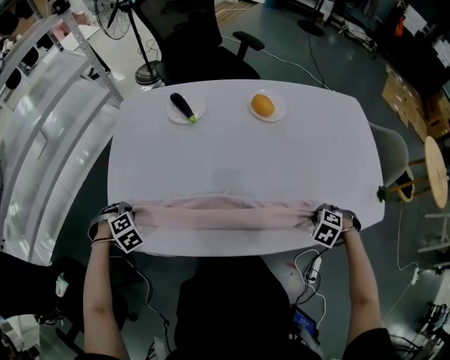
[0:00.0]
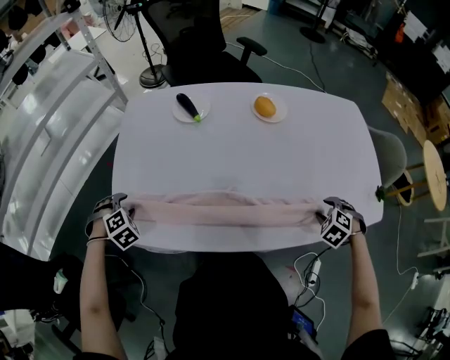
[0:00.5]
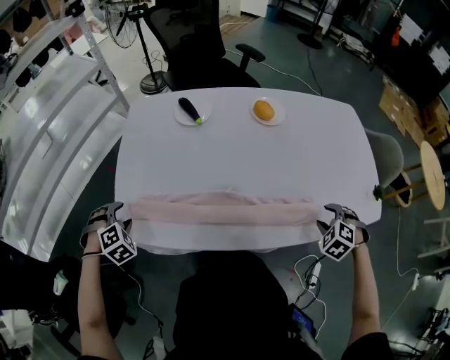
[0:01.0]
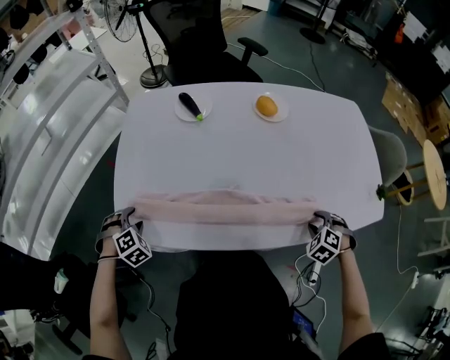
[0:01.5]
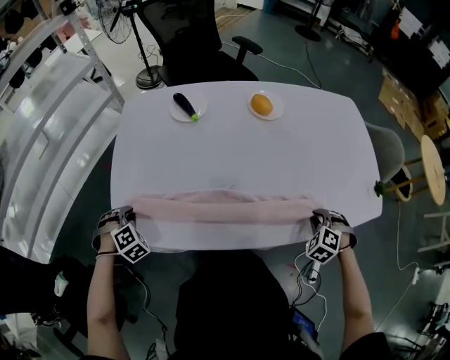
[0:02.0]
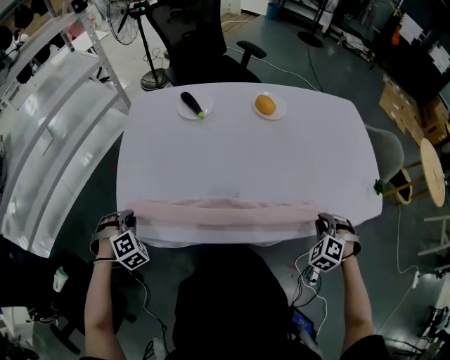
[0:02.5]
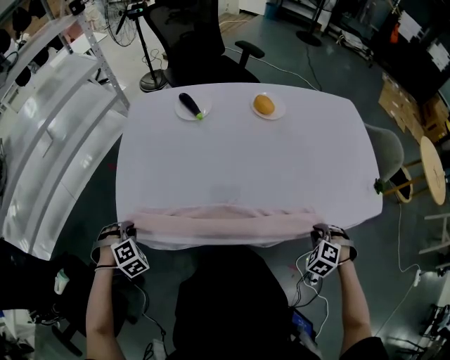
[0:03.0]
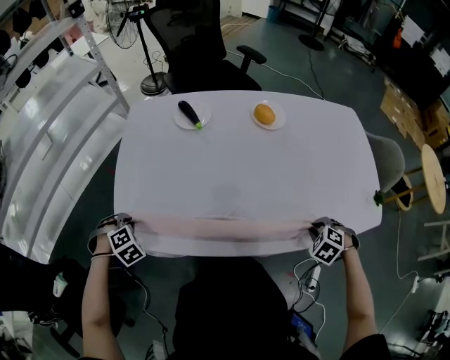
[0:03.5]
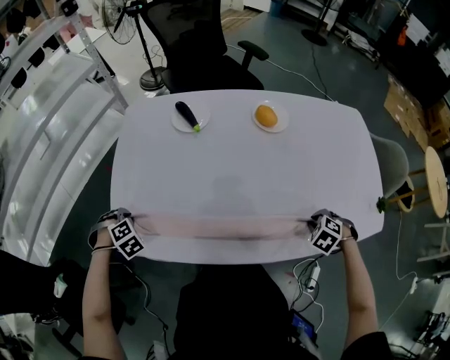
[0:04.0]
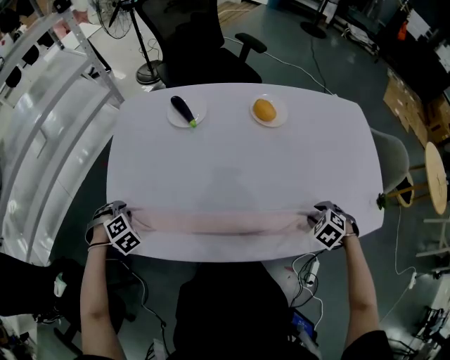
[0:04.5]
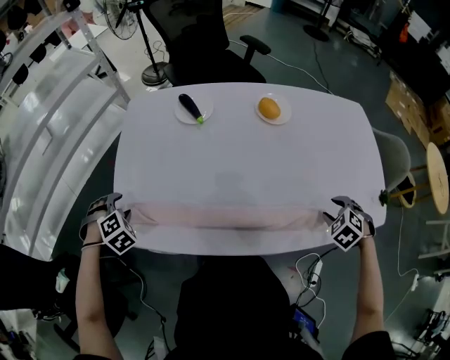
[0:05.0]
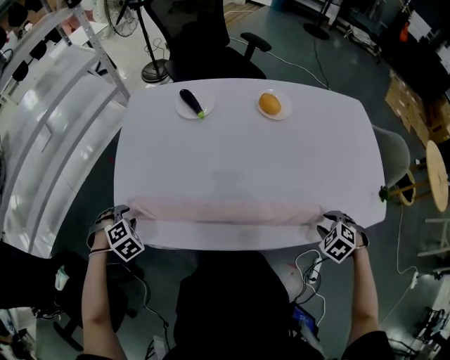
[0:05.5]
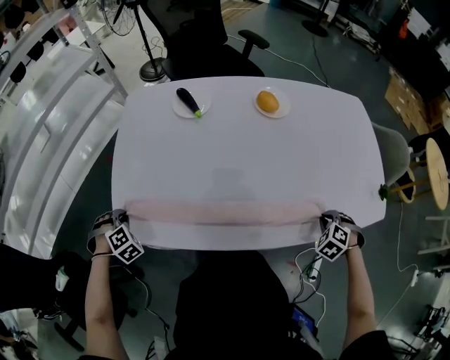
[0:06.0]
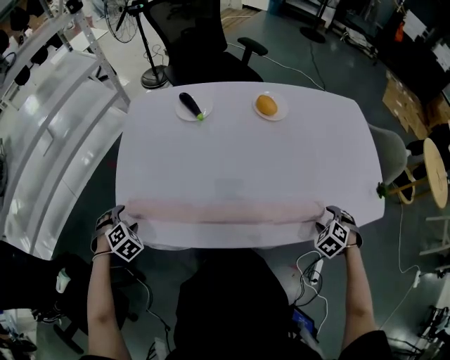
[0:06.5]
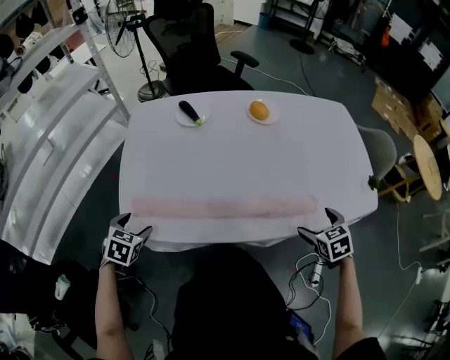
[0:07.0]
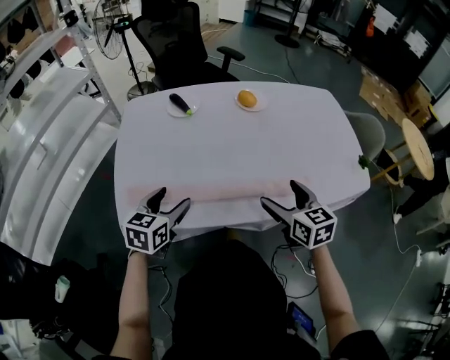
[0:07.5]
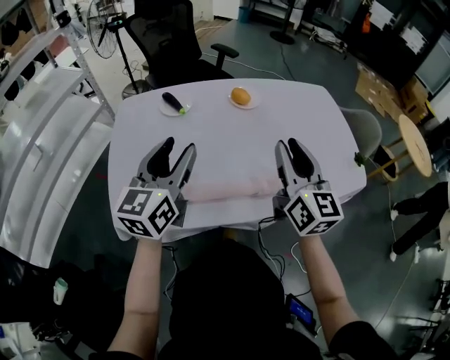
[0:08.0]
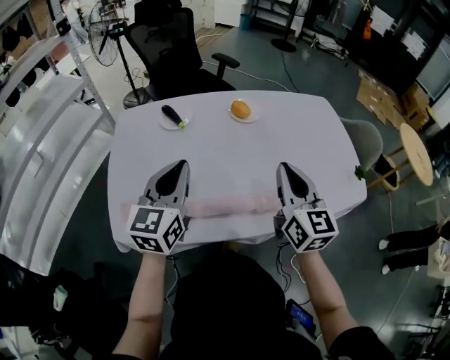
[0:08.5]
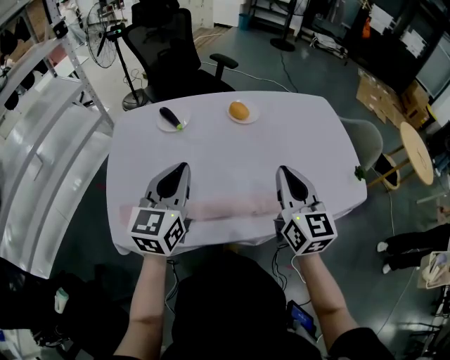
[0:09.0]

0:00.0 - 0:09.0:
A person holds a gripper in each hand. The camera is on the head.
0:00.0 - 0:02.0: The left gripper opens, then closes once more. The right gripper rotates about 20 degrees, and opens, then closes once more.
0:02.0 - 0:04.5: The right gripper changes place by roughly 5 cm.
0:04.5 - 0:07.0: The left gripper moves up and down over some 5 cm, changing direction 2 times, changes its angle by about 50 degrees, and opens its fingers, while the right gripper swings up and down, some 10 cm each way, with 2 reversals, changes its angle by roughly 40 degrees, and opens up.
0:07.0 - 0:09.0: The left gripper travels upward, to the right and forward by about 35 cm, points its fingers approximately 50 degrees further upward, and closes up; the right gripper heads upward and to the left, covering some 20 cm, tips its fingers upward by roughly 50 degrees, and closes.

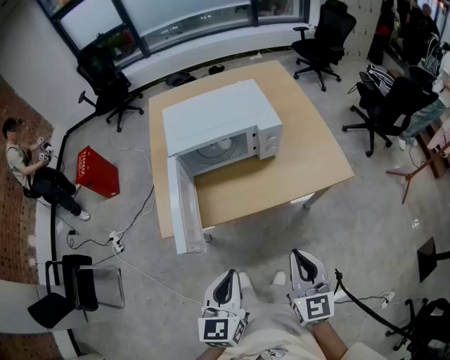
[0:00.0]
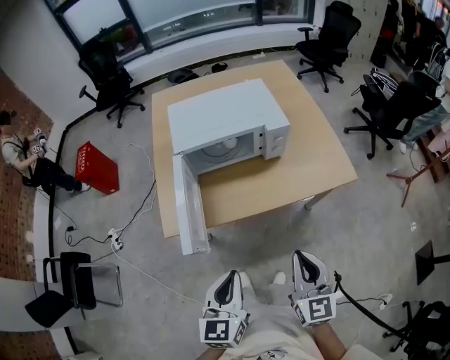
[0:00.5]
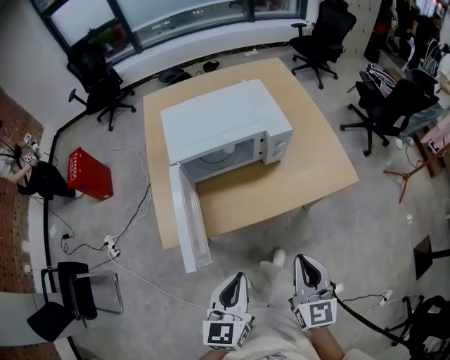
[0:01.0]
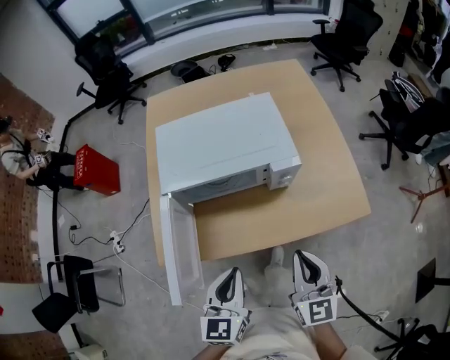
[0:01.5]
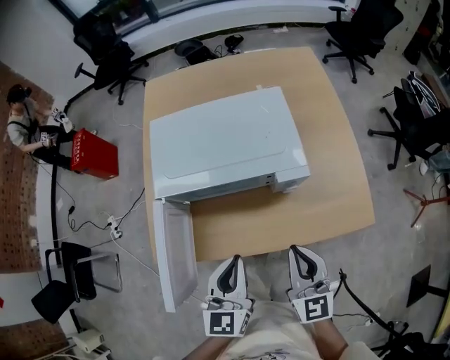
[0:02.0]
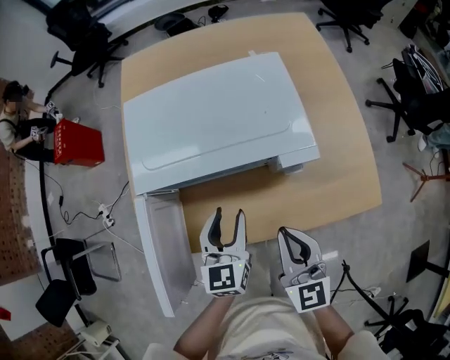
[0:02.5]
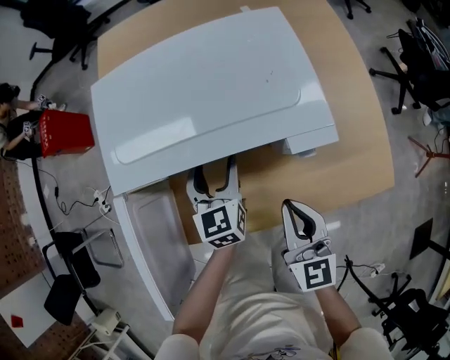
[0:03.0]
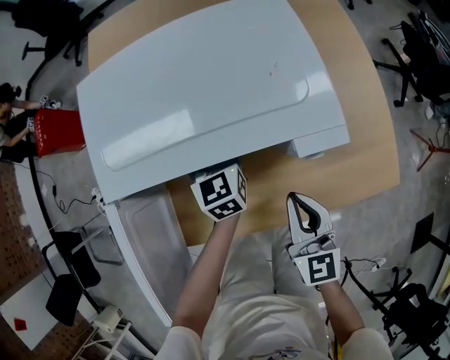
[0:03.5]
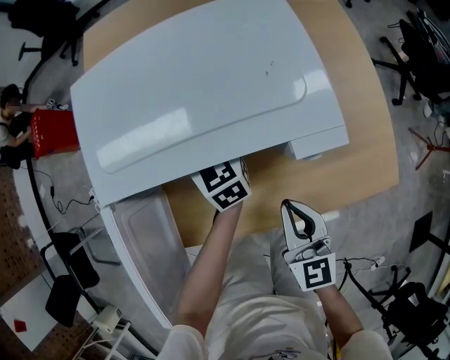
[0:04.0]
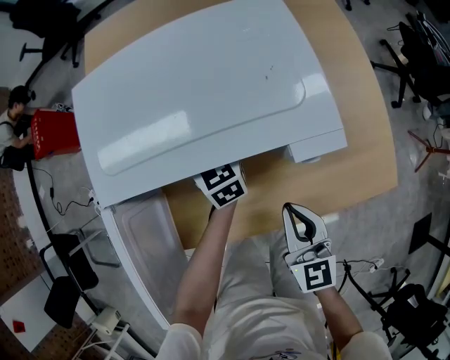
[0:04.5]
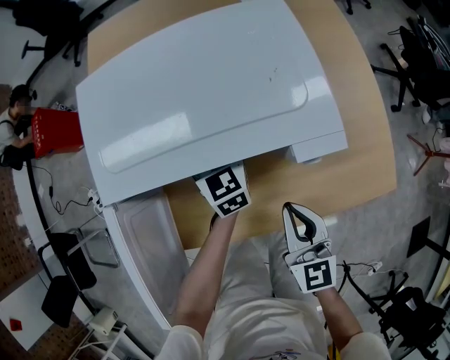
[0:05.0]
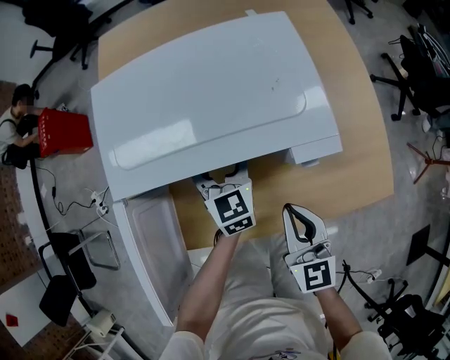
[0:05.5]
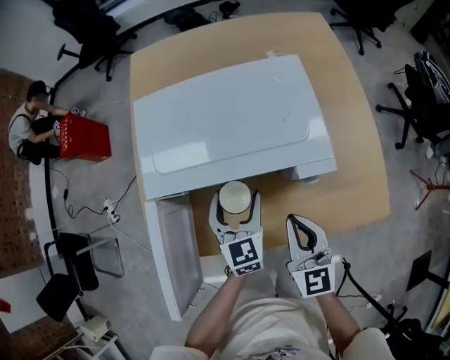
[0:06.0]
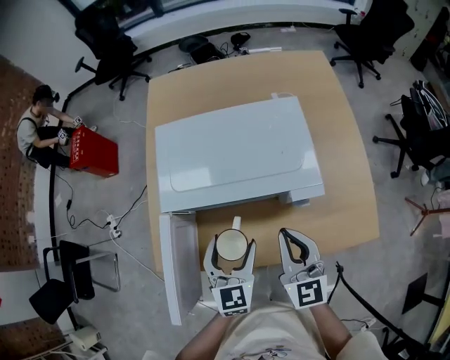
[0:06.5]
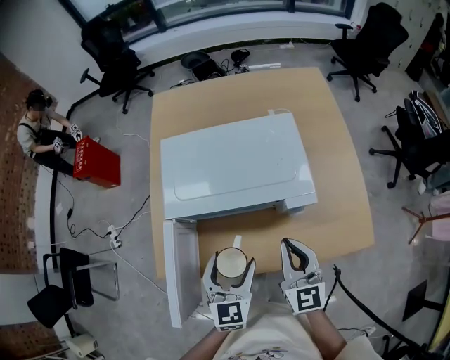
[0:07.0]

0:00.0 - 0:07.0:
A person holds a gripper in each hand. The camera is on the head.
0:00.0 - 0:02.0: Both grippers move forward, roughly 30 cm.
0:02.0 - 0:03.5: The left gripper heads forward and downward, covering approximately 35 cm, and opens. The right gripper travels downward and forward by some 15 cm.
0:03.5 - 0:05.0: The grippers stay close to where they were, moving slightly.
0:05.0 - 0:07.0: The right gripper shifts some 15 cm upward; the left gripper goes about 30 cm backward and upward.

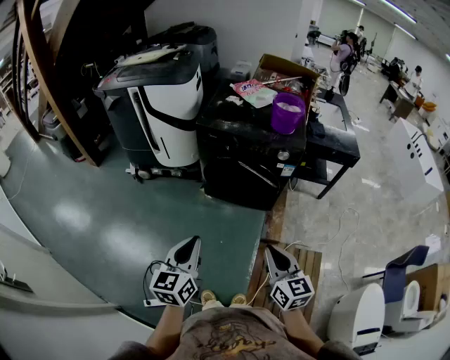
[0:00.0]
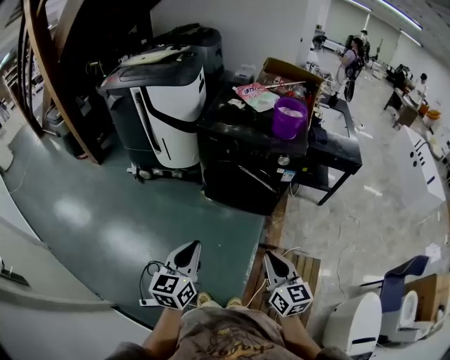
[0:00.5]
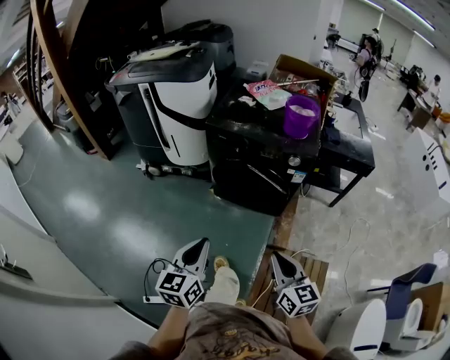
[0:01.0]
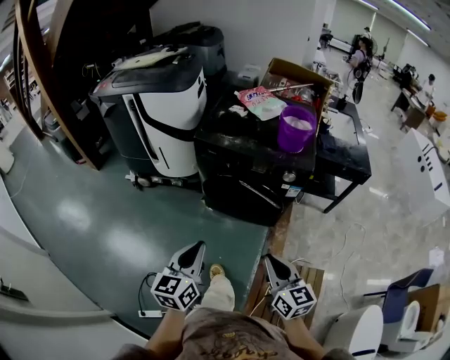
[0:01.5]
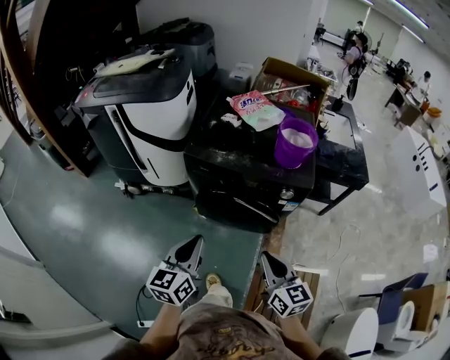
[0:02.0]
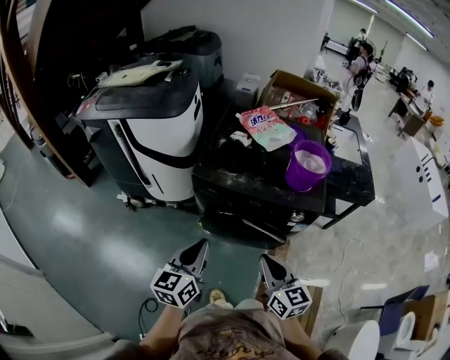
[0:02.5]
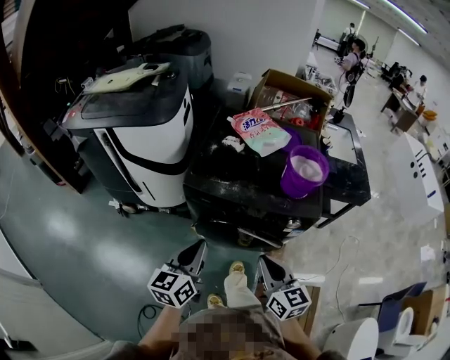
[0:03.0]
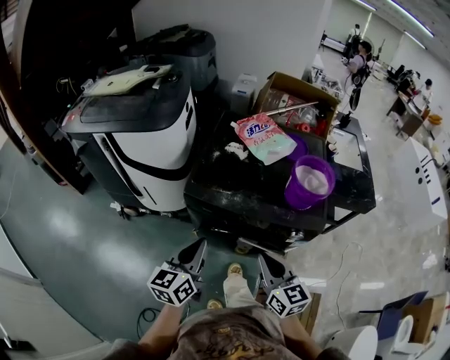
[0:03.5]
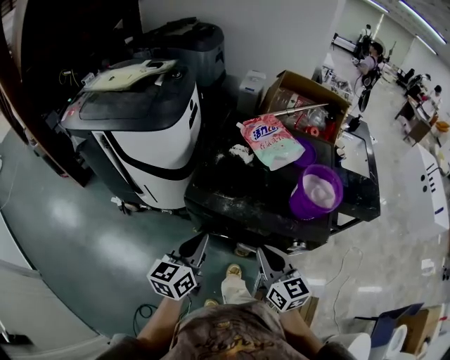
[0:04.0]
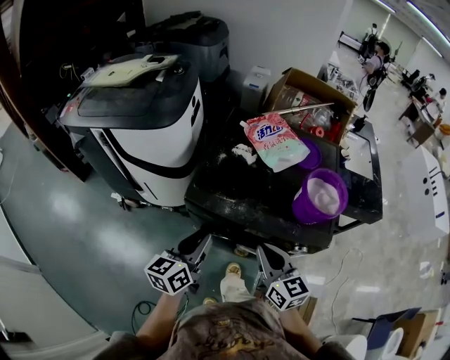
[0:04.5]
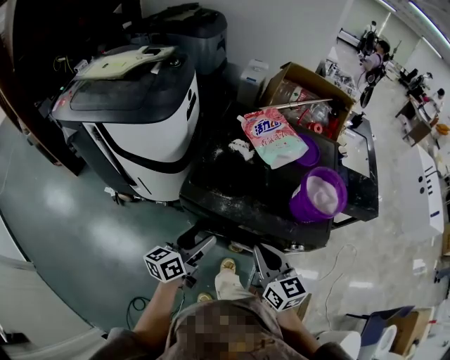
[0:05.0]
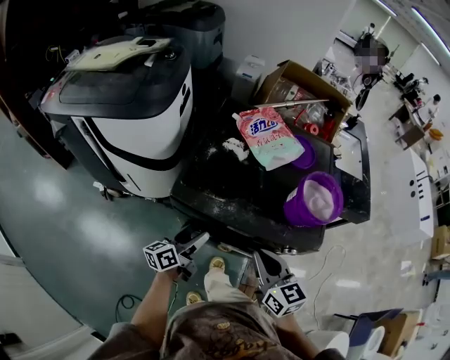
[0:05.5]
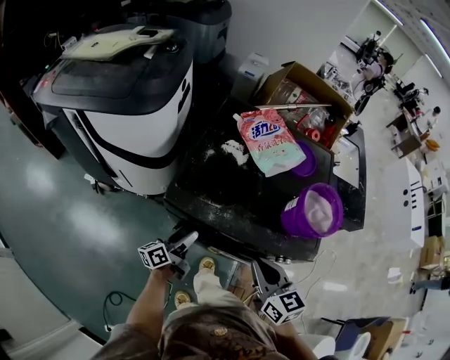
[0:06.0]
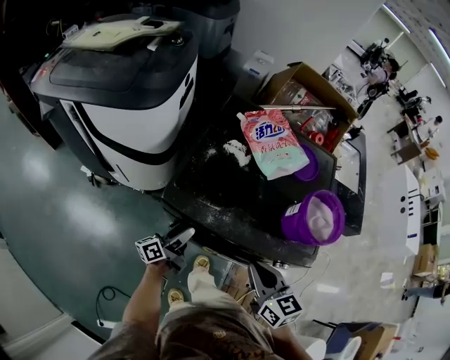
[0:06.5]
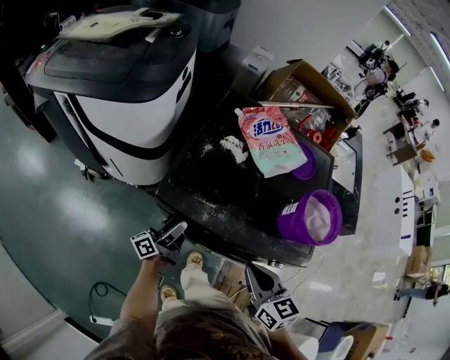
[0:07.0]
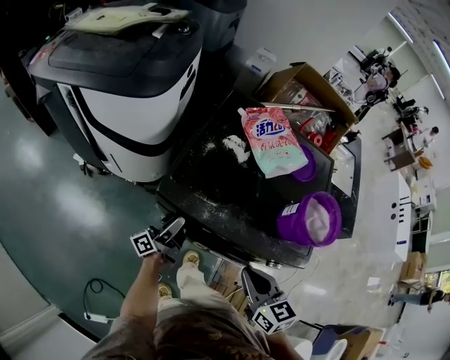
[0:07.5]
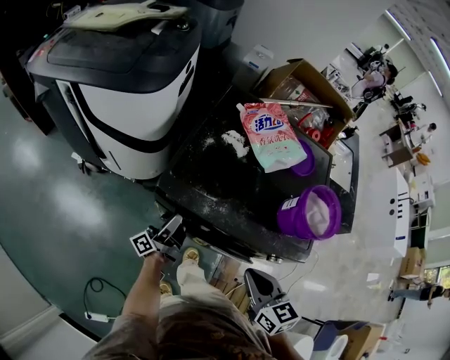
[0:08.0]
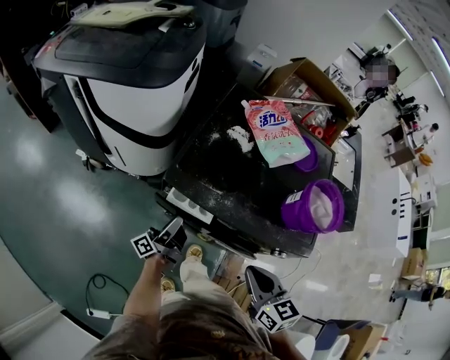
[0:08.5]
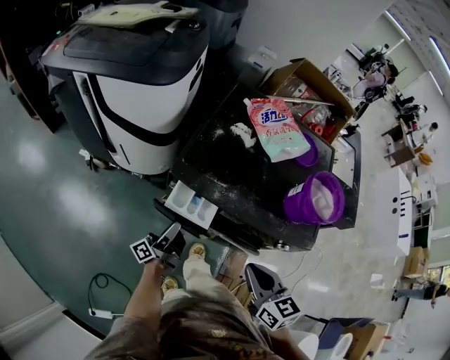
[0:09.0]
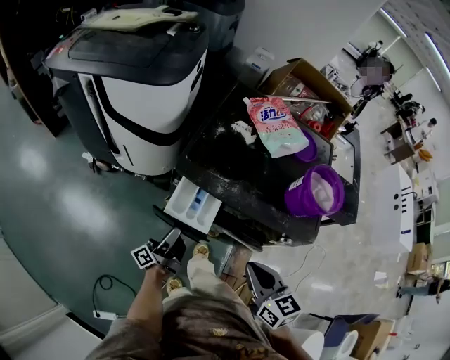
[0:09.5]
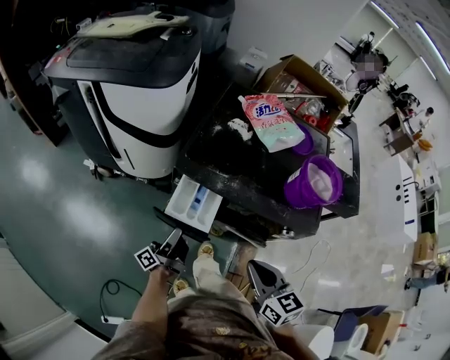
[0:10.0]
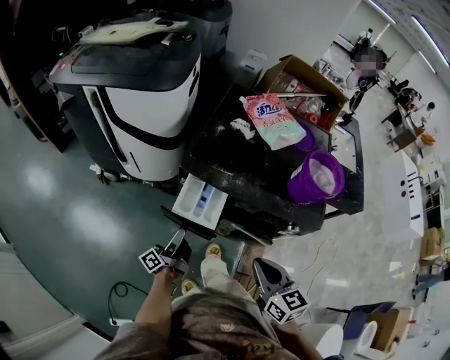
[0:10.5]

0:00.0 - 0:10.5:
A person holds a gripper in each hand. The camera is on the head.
0:00.0 - 0:02.0: Both grippers move forward, some 25 cm.
0:02.0 - 0:04.0: Both grippers travel together forward, some 25 cm.
0:04.0 - 0:06.5: The left gripper goes roughly 25 cm downward and forward, rolls counterclockwise, seen from behind, by roughly 40 degrees, and opens. The right gripper goes approximately 5 cm downward.
0:06.5 - 0:08.5: The right gripper moves backward, some 5 cm, while the left gripper swivels some 20 degrees.
0:08.5 - 0:10.5: Both grippers move backward, roughly 10 cm.
